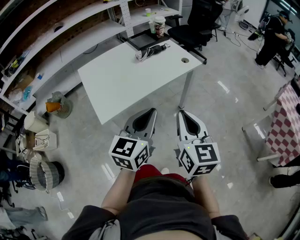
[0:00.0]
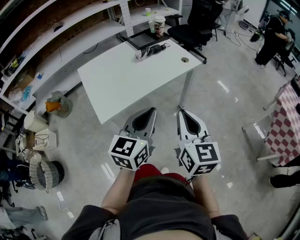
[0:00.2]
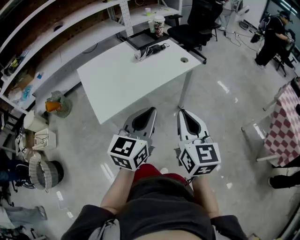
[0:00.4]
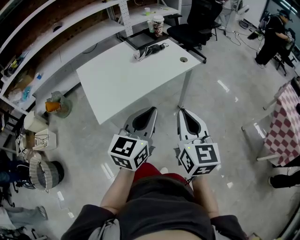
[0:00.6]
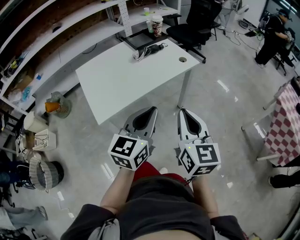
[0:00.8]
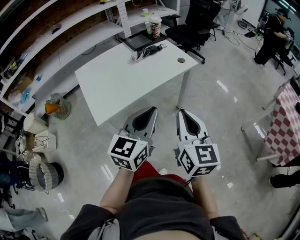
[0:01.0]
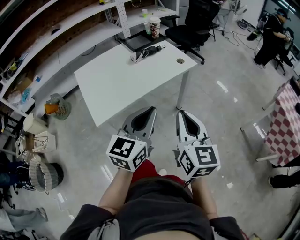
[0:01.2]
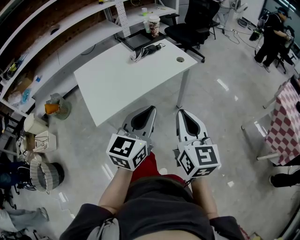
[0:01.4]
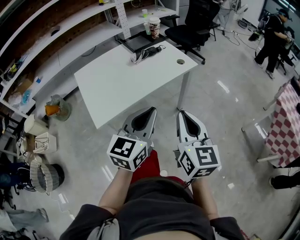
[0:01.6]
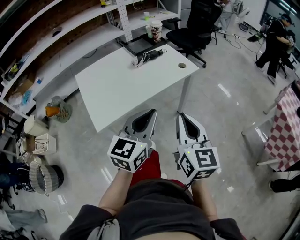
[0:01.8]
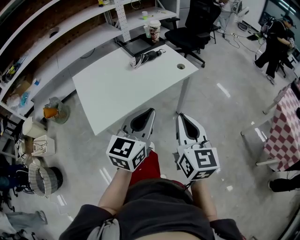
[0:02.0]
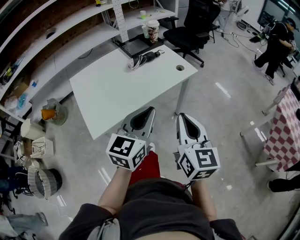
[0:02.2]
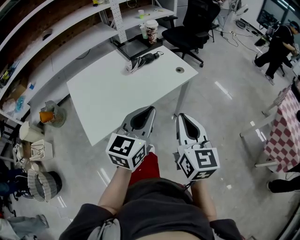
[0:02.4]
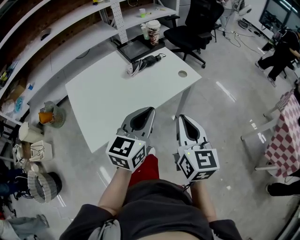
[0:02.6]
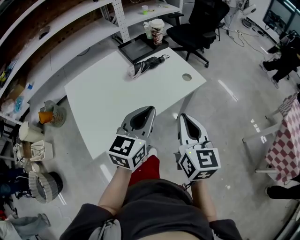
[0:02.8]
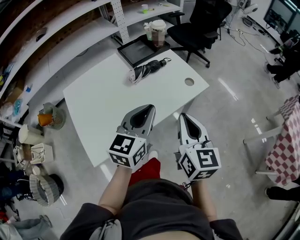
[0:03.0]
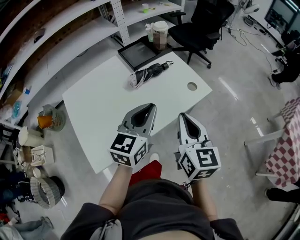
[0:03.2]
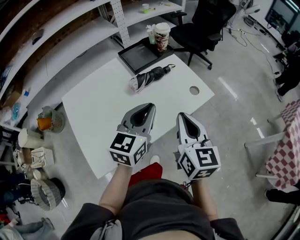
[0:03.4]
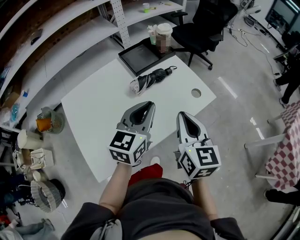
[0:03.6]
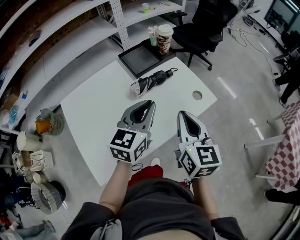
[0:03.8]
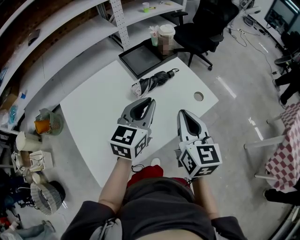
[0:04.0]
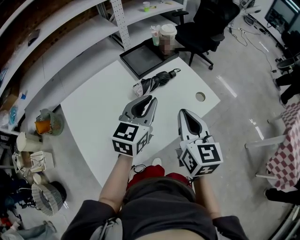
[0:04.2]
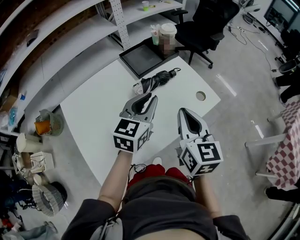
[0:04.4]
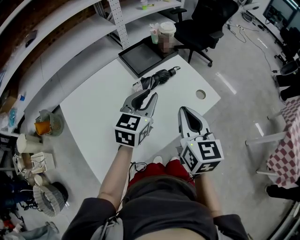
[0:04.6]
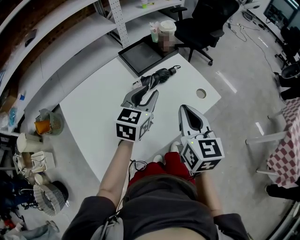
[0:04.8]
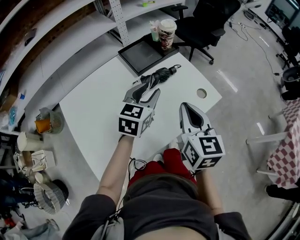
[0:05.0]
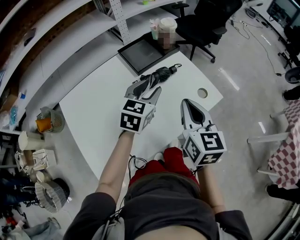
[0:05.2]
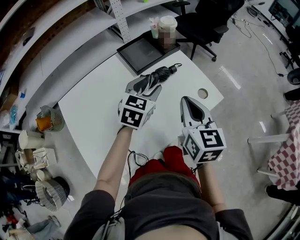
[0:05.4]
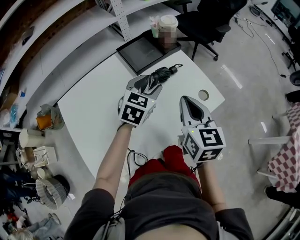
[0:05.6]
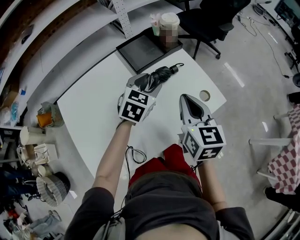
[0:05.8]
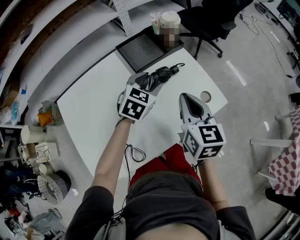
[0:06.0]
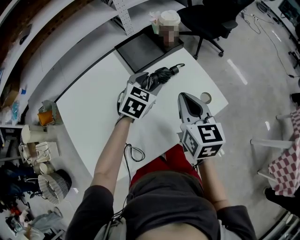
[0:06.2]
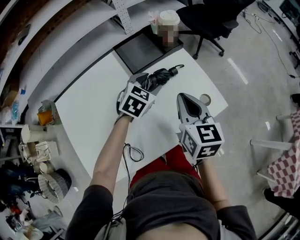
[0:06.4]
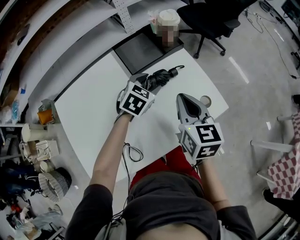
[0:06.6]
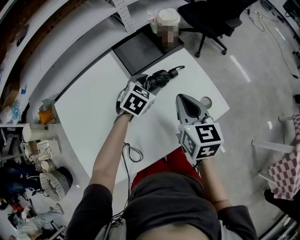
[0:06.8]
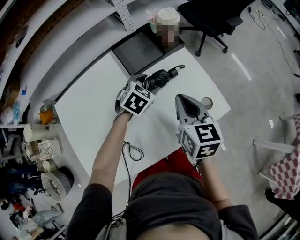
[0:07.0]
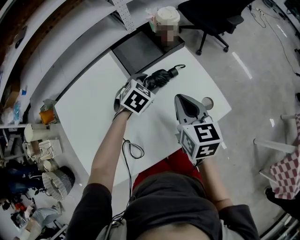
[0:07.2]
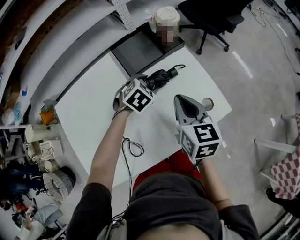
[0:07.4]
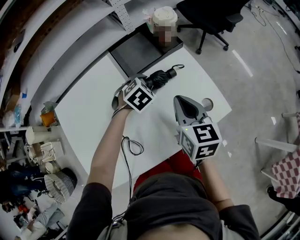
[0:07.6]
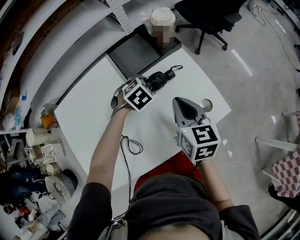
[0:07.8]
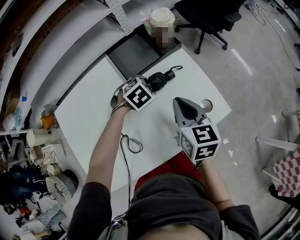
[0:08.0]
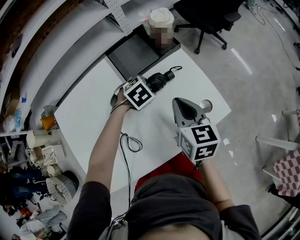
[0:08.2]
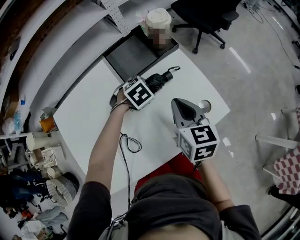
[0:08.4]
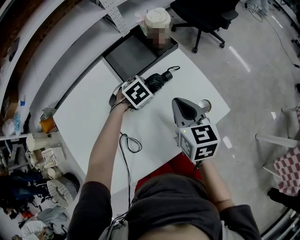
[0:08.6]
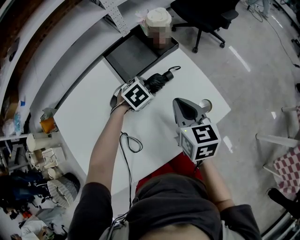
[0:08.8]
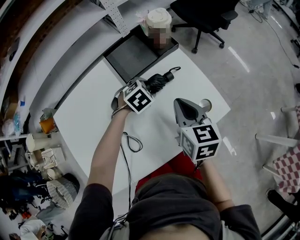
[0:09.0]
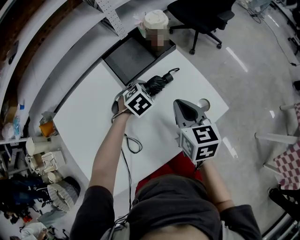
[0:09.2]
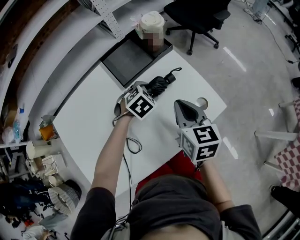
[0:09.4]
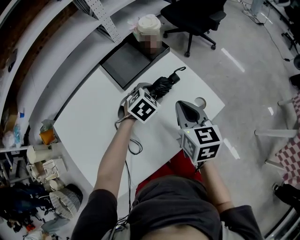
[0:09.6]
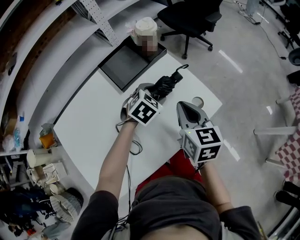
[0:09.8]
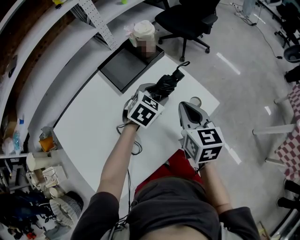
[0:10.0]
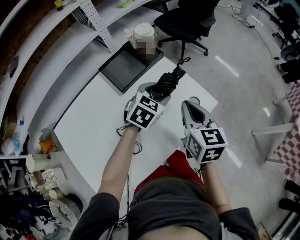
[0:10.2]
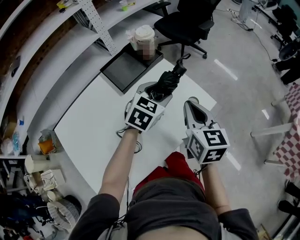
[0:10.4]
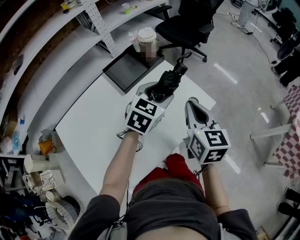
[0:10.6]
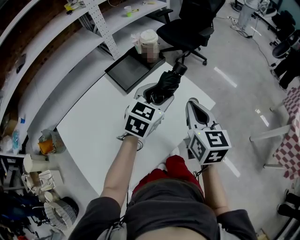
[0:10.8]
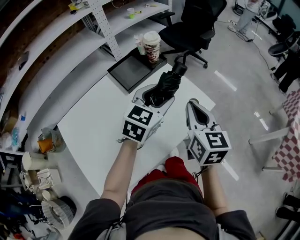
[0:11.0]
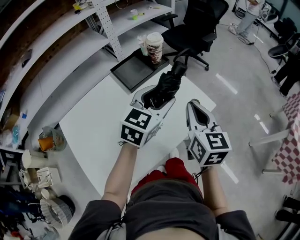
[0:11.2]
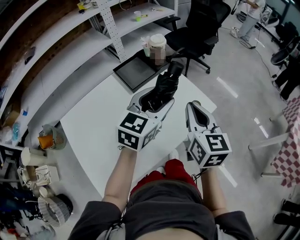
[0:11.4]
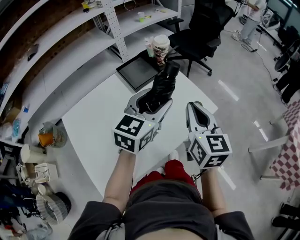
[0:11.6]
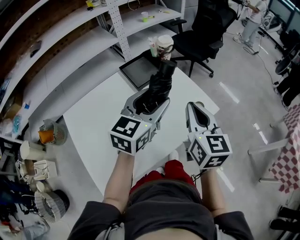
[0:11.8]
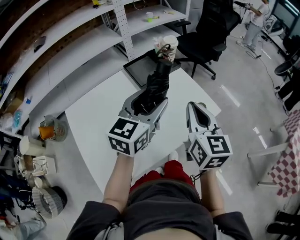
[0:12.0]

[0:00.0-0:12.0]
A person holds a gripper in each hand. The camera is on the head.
0:00.0 to 0:01.6: The grippers move only a little.
0:01.6 to 0:03.0: The grippers both shift forward by roughly 25 cm.
0:03.0 to 0:04.4: The two grippers go roughly 15 cm forward and to the left.
0:04.4 to 0:06.0: The right gripper travels forward by some 10 cm; the left gripper is displaced forward and downward by roughly 15 cm, rotates roughly 20 degrees, and opens.
0:06.0 to 0:07.6: The left gripper travels downward and forward by some 10 cm, and changes its angle by approximately 30 degrees. Meanwhile the right gripper is displaced forward and downward by about 10 cm.
0:07.6 to 0:09.0: There are only small adjustments of the grippers.
0:09.0 to 0:10.4: The left gripper travels upward and to the right by about 20 cm, and tips its fingers upward by about 30 degrees. Meanwhile the right gripper shifts approximately 10 cm to the right and upward.
0:10.4 to 0:12.0: The right gripper is displaced upward and backward by some 10 cm, while the left gripper shifts some 20 cm upward, backward and to the left, and changes its angle by roughly 30 degrees.

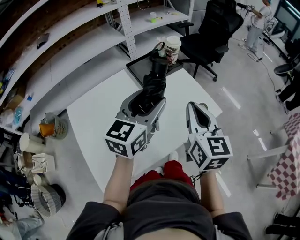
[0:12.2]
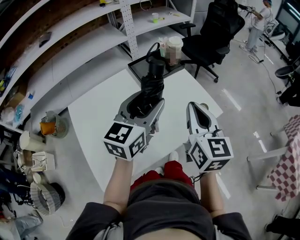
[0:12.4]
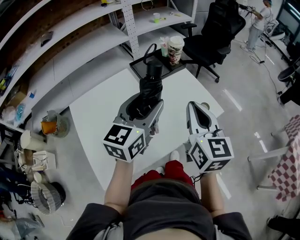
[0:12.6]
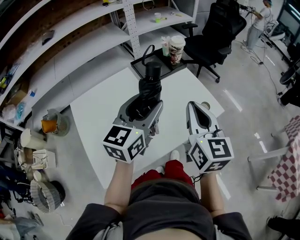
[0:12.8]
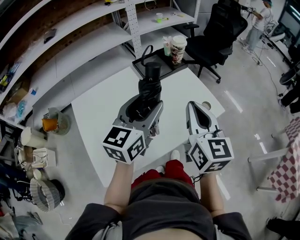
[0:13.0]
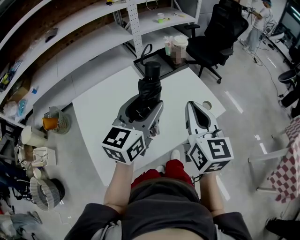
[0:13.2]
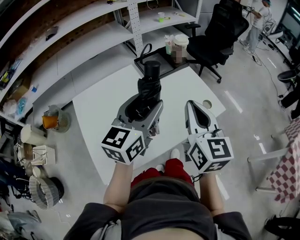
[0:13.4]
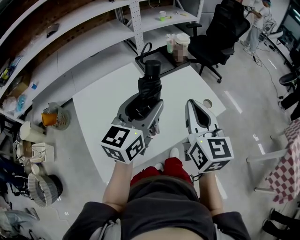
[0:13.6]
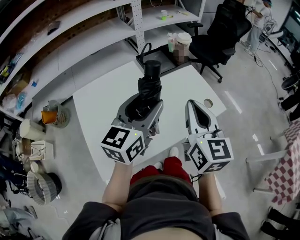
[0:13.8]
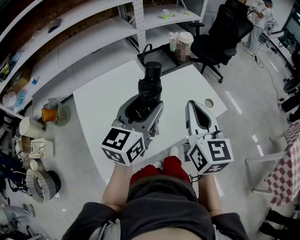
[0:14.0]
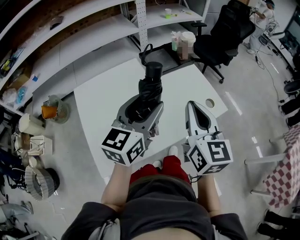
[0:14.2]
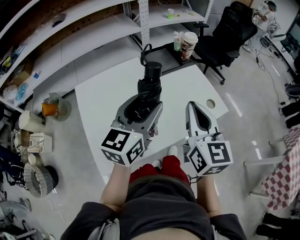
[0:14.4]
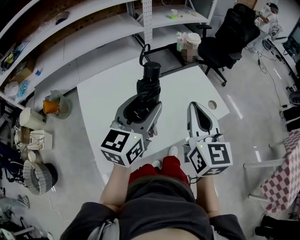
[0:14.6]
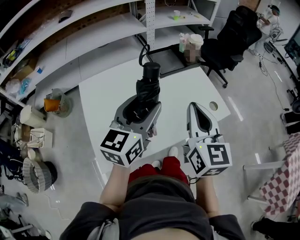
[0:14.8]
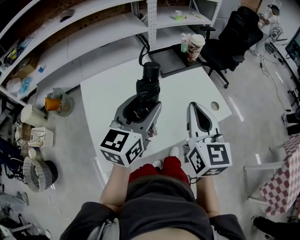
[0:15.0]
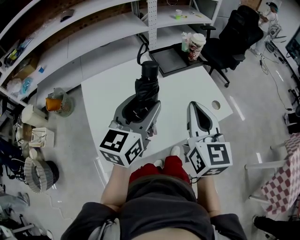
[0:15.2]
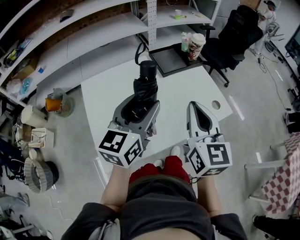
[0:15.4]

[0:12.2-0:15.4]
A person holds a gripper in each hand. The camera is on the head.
0:12.2 to 0:13.8: The left gripper travels backward by approximately 5 cm, while the right gripper changes place by about 5 cm.
0:13.8 to 0:15.4: The left gripper shifts some 5 cm to the left.

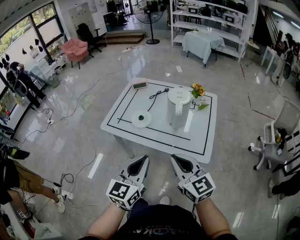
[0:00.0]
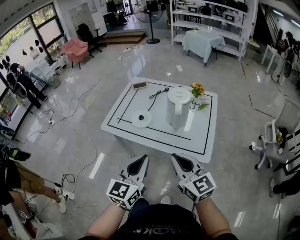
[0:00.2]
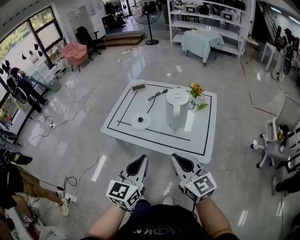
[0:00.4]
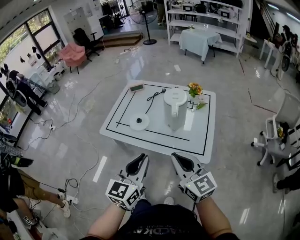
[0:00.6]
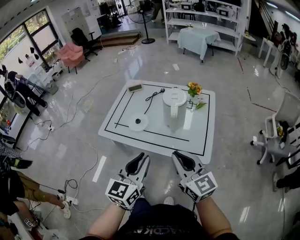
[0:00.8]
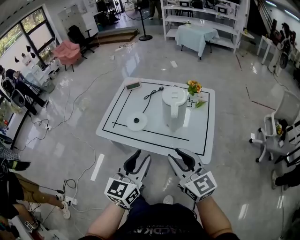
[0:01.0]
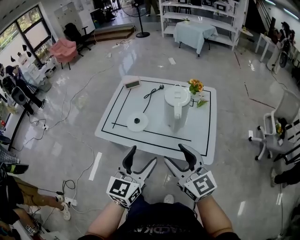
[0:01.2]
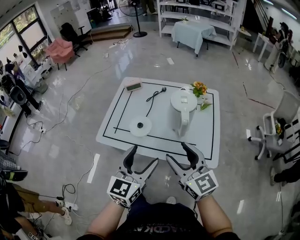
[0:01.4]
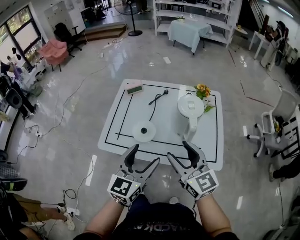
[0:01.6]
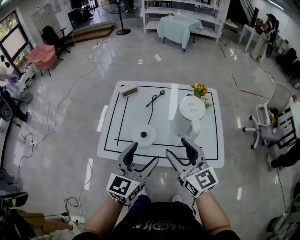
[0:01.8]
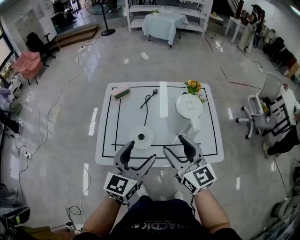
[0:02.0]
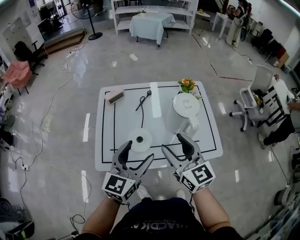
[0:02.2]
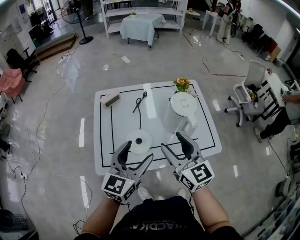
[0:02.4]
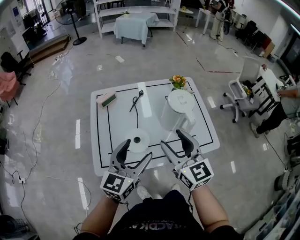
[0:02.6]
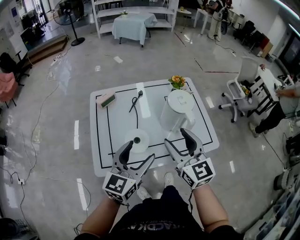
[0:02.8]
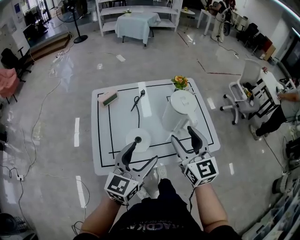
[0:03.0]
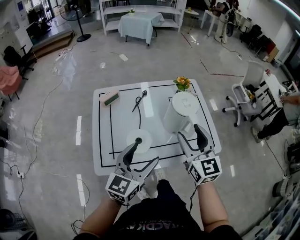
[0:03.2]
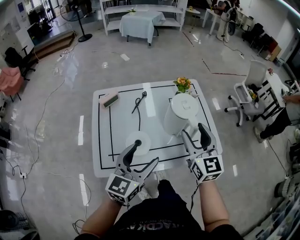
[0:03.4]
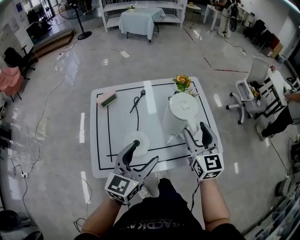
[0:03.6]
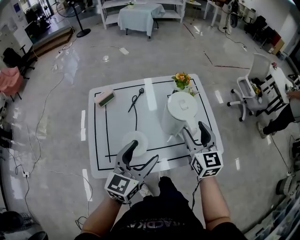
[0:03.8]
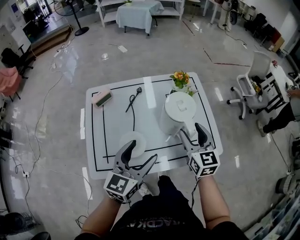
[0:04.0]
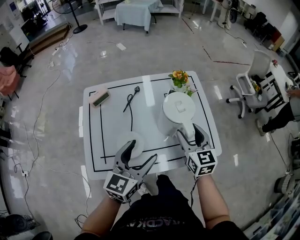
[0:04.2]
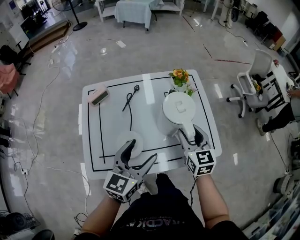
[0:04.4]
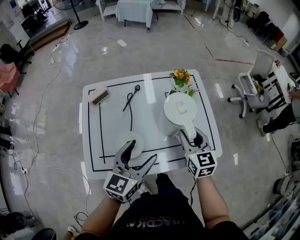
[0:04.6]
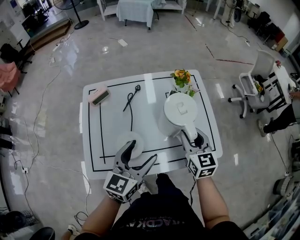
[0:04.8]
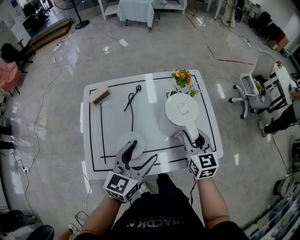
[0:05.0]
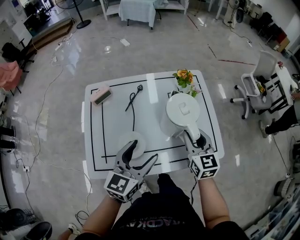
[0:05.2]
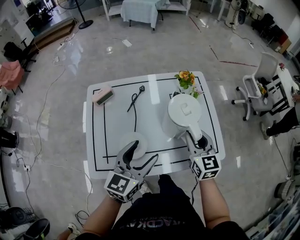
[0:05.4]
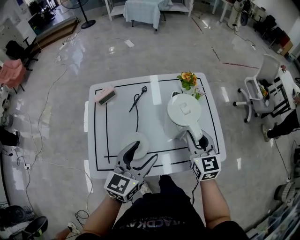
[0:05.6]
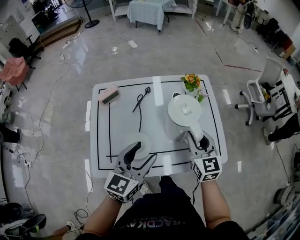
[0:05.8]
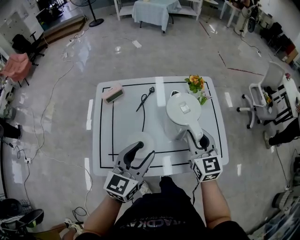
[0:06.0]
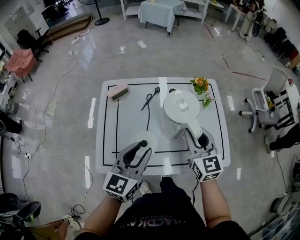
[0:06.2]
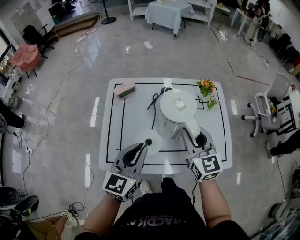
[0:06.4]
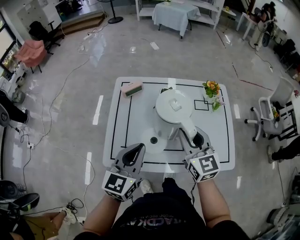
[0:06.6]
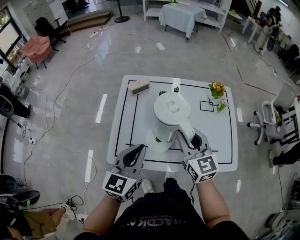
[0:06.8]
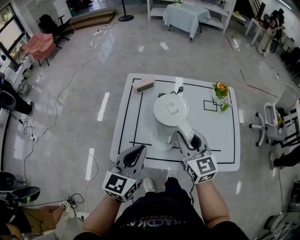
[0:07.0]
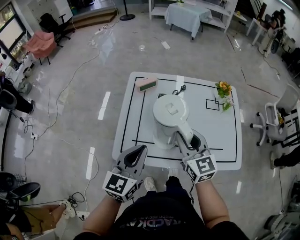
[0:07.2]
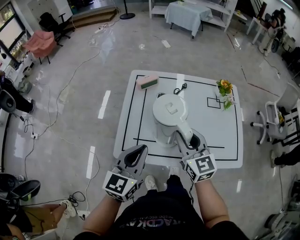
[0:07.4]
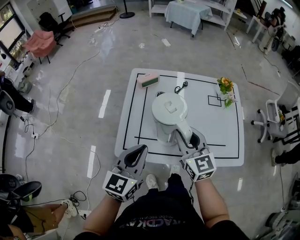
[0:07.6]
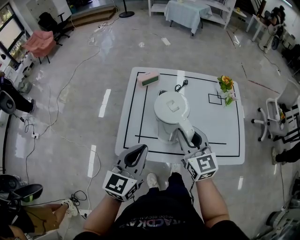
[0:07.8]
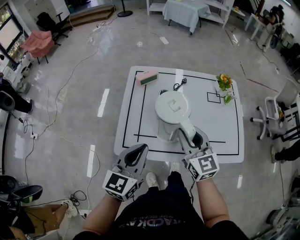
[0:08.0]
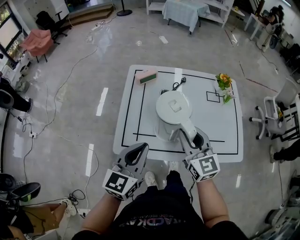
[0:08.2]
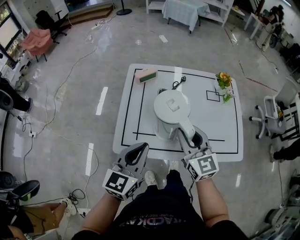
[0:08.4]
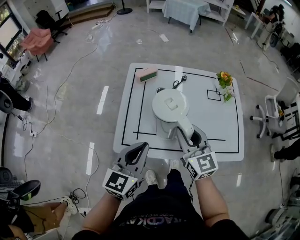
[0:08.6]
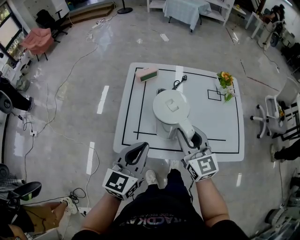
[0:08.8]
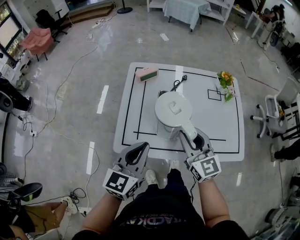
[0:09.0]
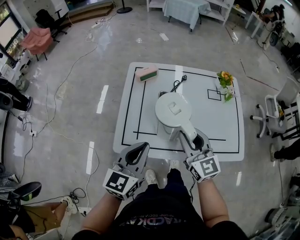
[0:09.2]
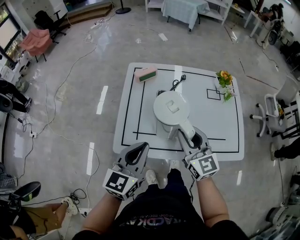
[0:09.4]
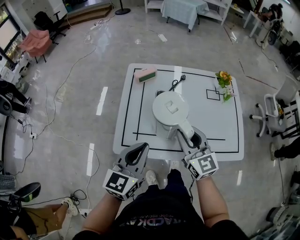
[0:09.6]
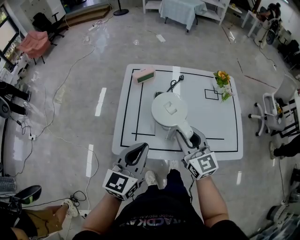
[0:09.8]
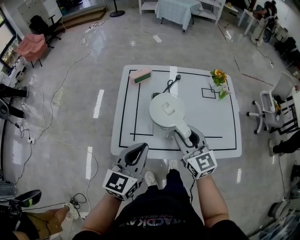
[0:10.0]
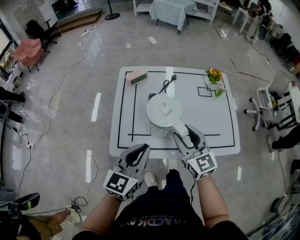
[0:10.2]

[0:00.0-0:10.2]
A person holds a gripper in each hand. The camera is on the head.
0:00.0 to 0:01.4: Both grippers move forward, some 10 cm. The left gripper opens, while the right gripper opens its fingers.
0:01.4 to 0:03.0: The left gripper changes place by roughly 15 cm, and swivels approximately 30 degrees; the right gripper moves approximately 15 cm, and swivels approximately 40 degrees.
0:03.0 to 0:04.4: The left gripper travels forward by some 10 cm. Meanwhile the right gripper travels downward, forward and to the right by roughly 20 cm.
0:04.4 to 0:05.8: The right gripper closes its fingers.
0:05.8 to 0:07.2: The left gripper moves to the left and backward, roughly 15 cm, and closes up. The right gripper heads to the left, covering roughly 20 cm, and rotates roughly 20 degrees.
0:07.2 to 0:10.2: The grippers make only small movements.
